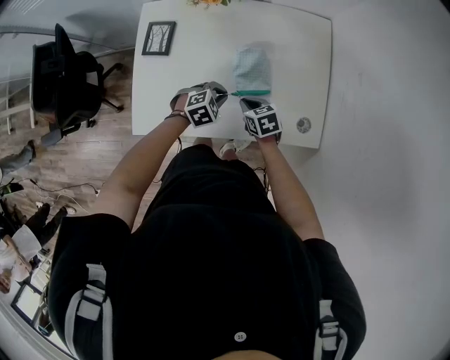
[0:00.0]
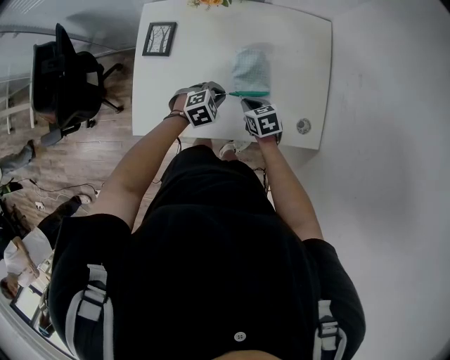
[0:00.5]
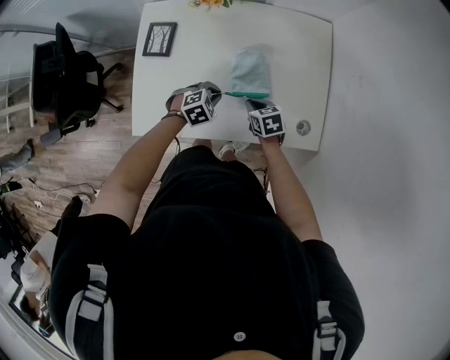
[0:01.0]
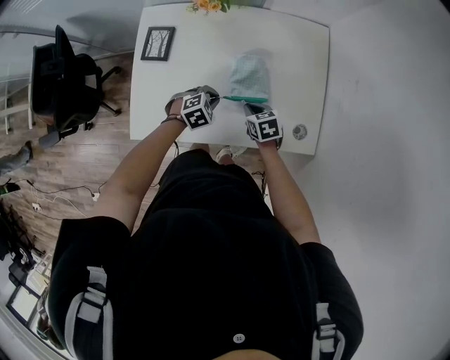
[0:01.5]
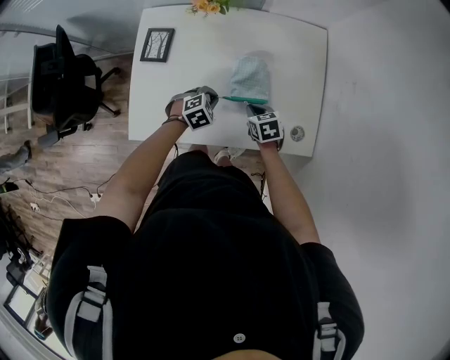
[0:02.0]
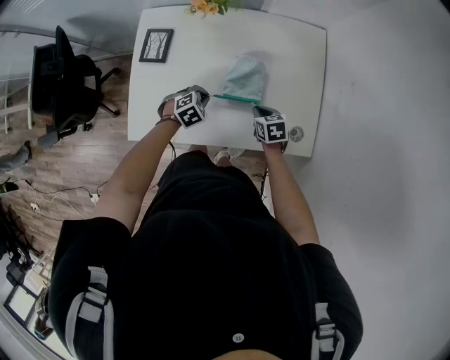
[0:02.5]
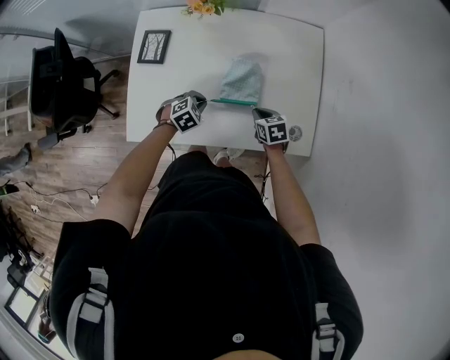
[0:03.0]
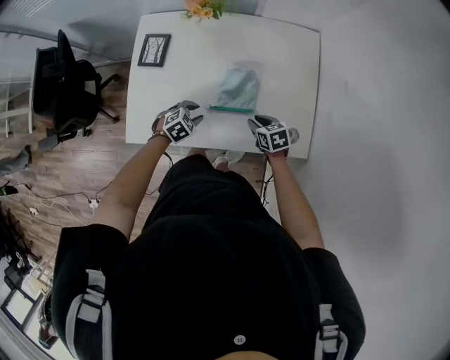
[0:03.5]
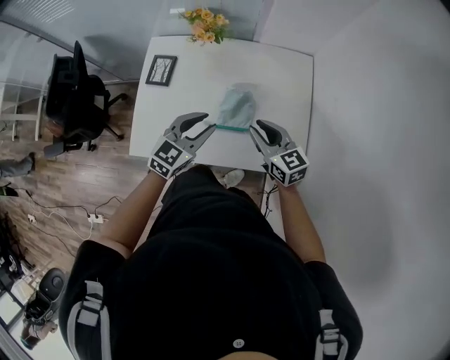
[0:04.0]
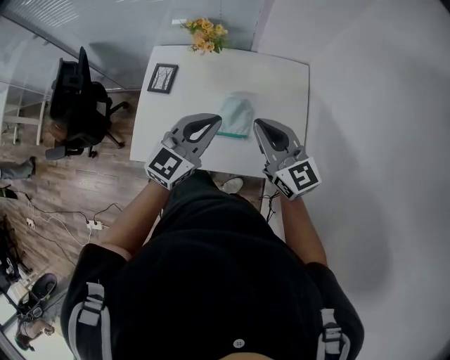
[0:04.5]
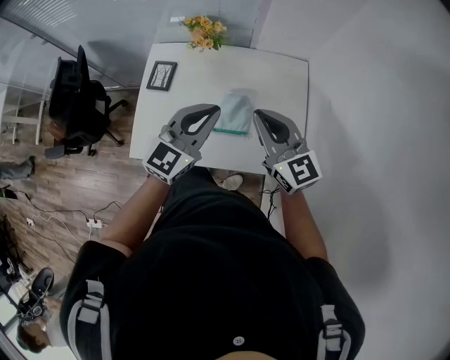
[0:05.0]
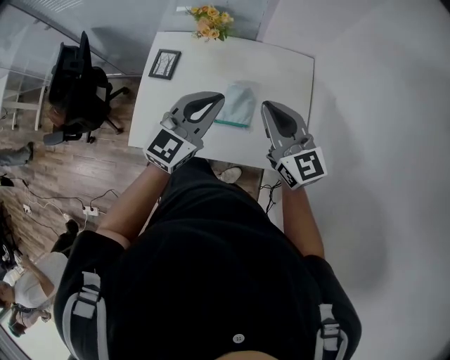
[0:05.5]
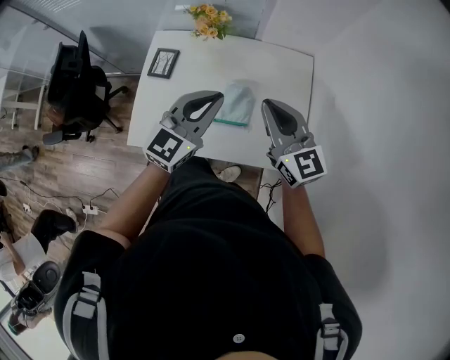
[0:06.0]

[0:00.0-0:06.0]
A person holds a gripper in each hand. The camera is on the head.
0.0 to 2.0 s: The grippers stay close to where they were, moving slightly.
2.0 to 4.0 s: Both grippers travel together upward, some 25 cm. The left gripper points its fingers about 40 degrees further upward, and opens; the right gripper points its fingers roughly 40 degrees further upward.
4.0 to 6.0 s: Both grippers move upward, some 15 cm. The left gripper closes its fingers, while the right gripper changes its angle by approximately 20 degrees.

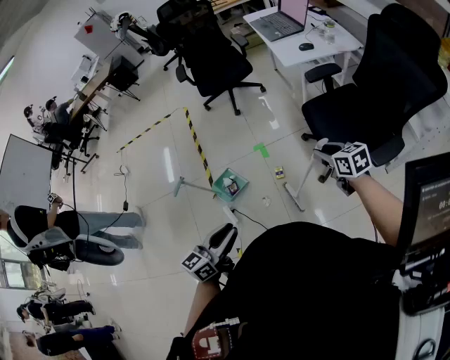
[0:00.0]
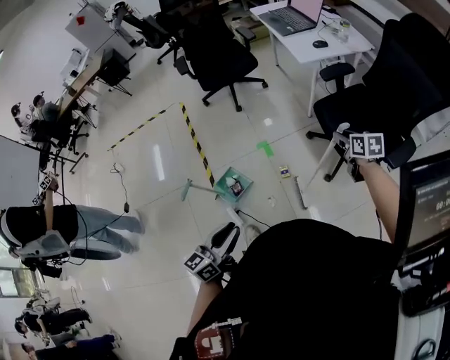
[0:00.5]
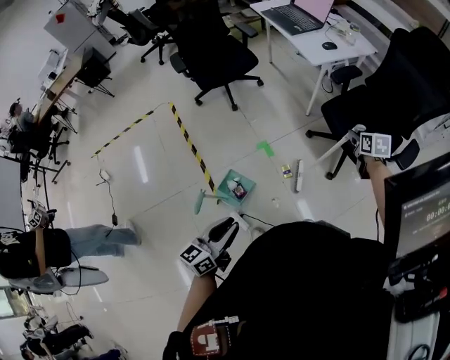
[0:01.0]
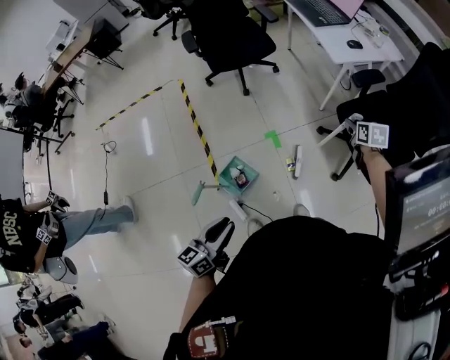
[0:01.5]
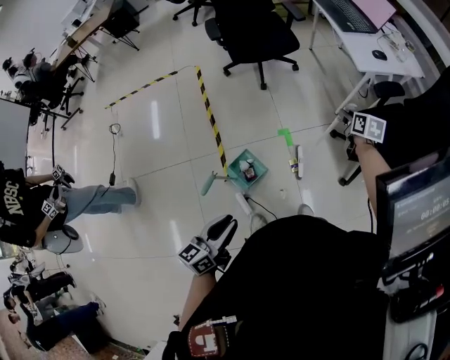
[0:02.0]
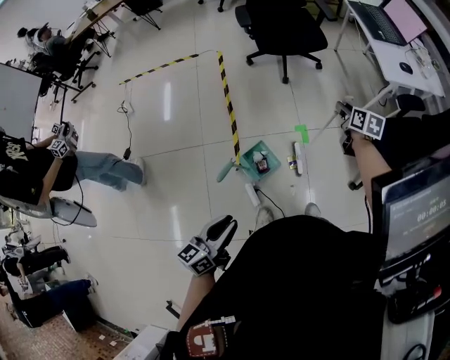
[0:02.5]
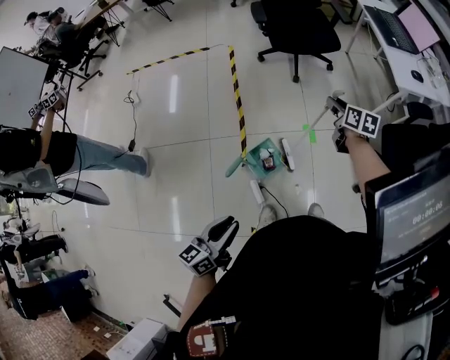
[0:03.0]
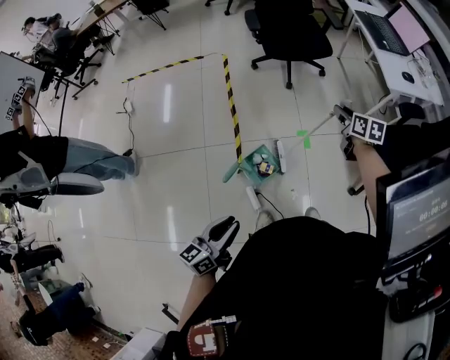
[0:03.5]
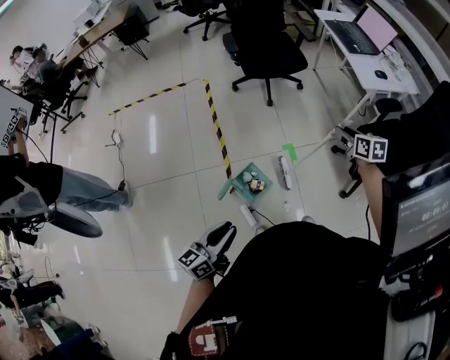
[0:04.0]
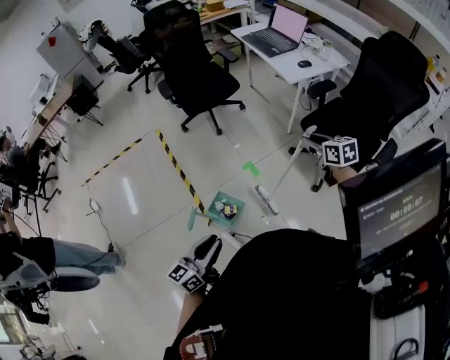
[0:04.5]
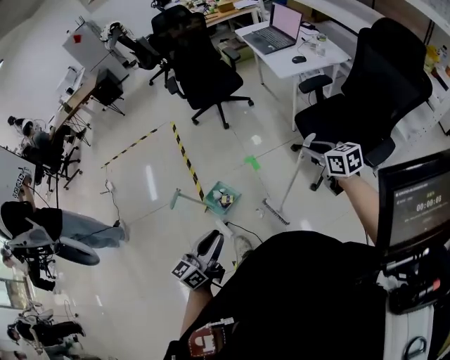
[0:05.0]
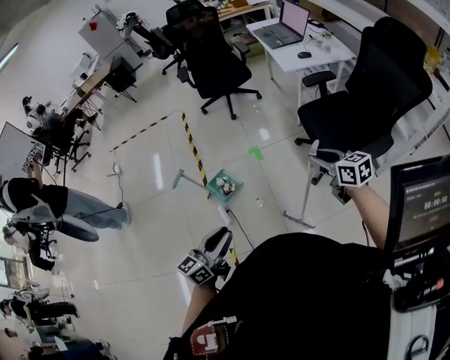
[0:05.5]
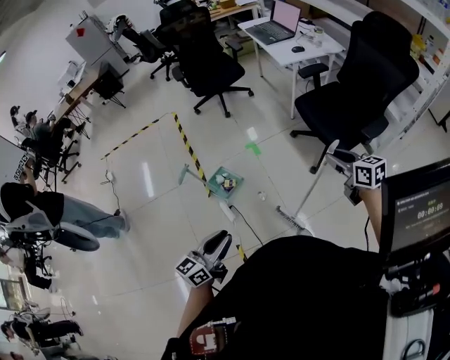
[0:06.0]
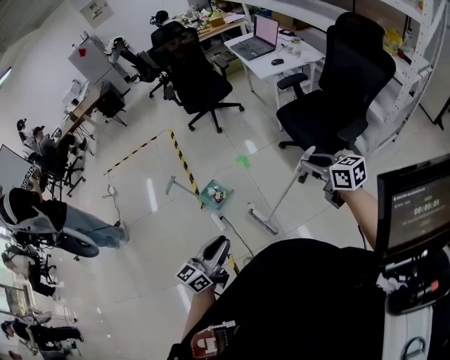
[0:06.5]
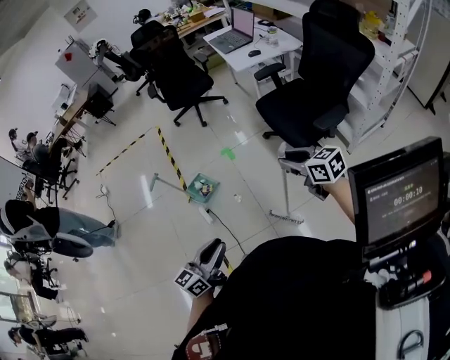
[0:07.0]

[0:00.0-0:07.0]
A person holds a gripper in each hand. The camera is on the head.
0.0 to 2.0 s: The left gripper changes place by roughly 35 cm, while the right gripper shifts by roughly 40 cm, and changes its angle by roughly 30 degrees.
2.0 to 3.5 s: The right gripper travels to the left by some 20 cm, while the left gripper travels to the left and backward by about 10 cm.
3.5 to 5.0 s: The right gripper travels to the right and backward by about 40 cm, while the left gripper travels to the right by about 25 cm.
5.0 to 7.0 s: The right gripper is displaced backward by approximately 25 cm; the left gripper heads backward and to the right, covering some 25 cm.

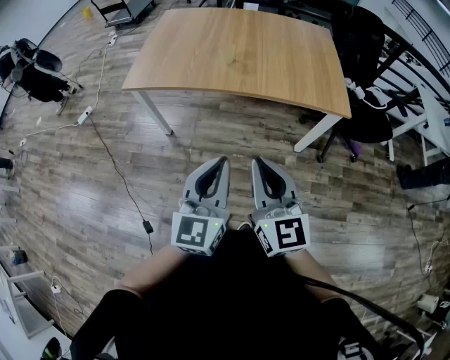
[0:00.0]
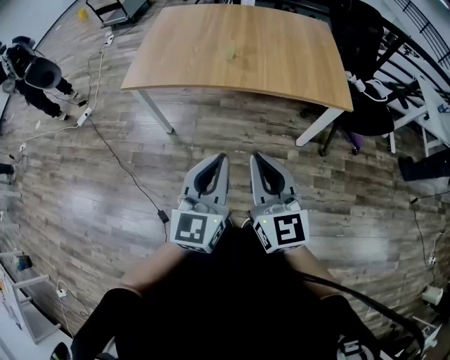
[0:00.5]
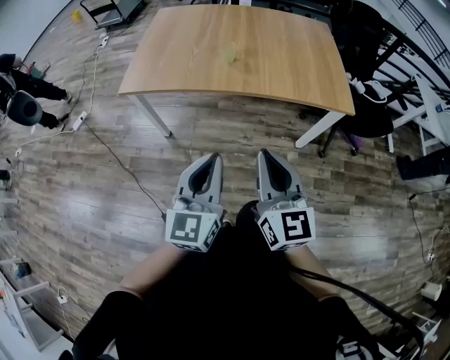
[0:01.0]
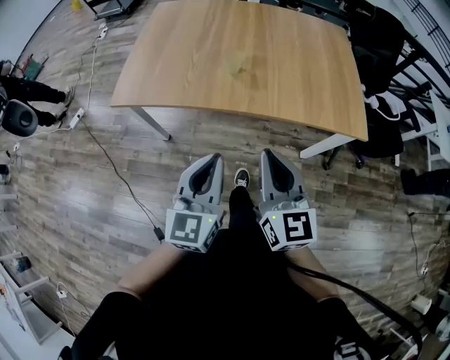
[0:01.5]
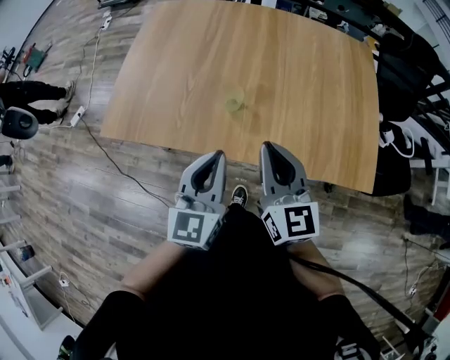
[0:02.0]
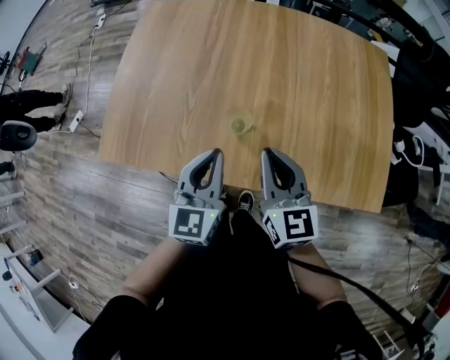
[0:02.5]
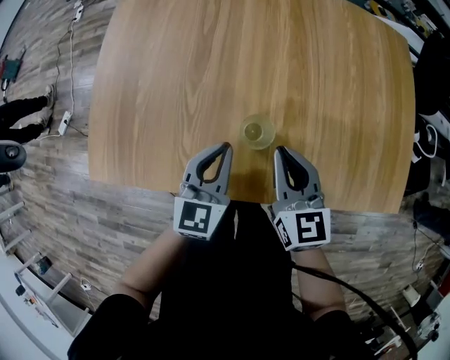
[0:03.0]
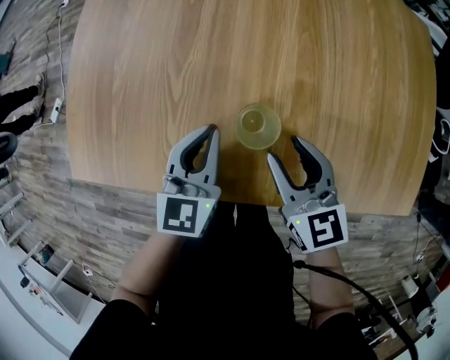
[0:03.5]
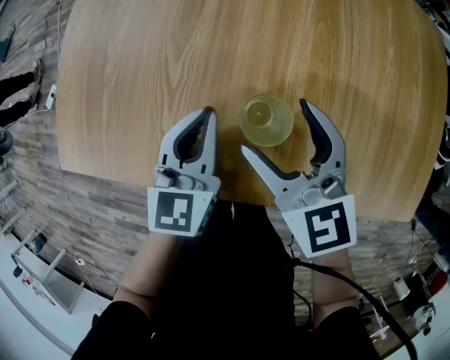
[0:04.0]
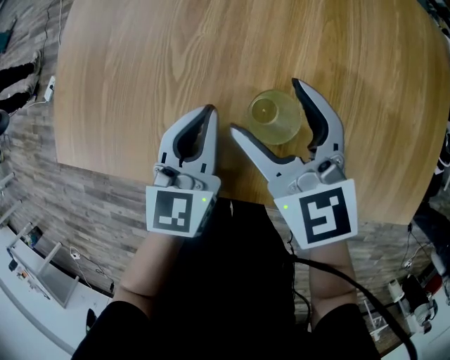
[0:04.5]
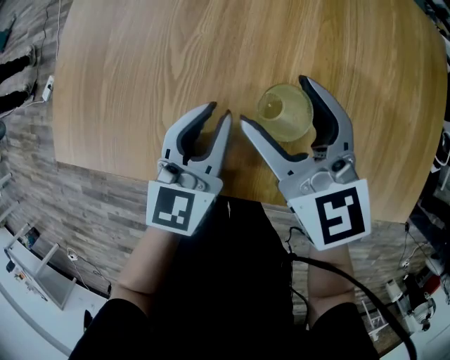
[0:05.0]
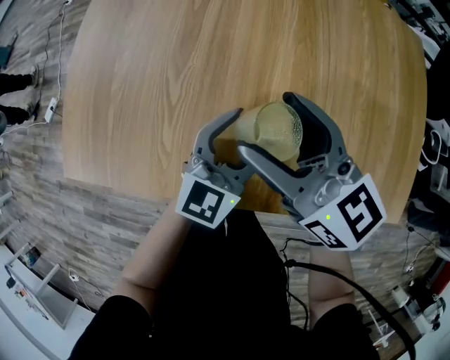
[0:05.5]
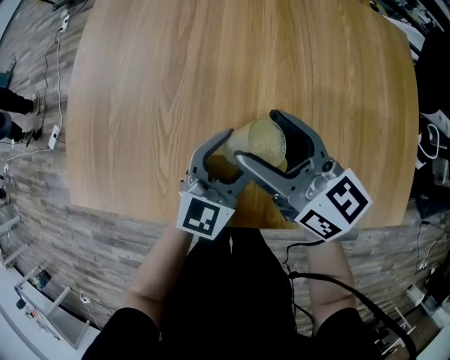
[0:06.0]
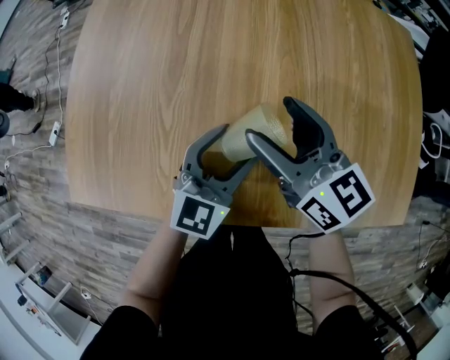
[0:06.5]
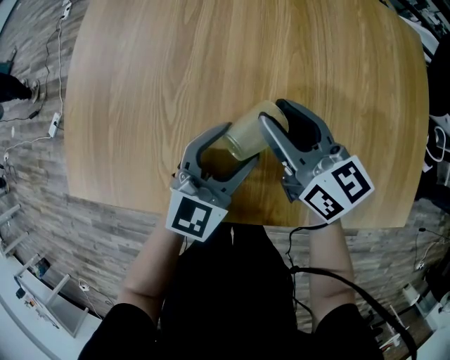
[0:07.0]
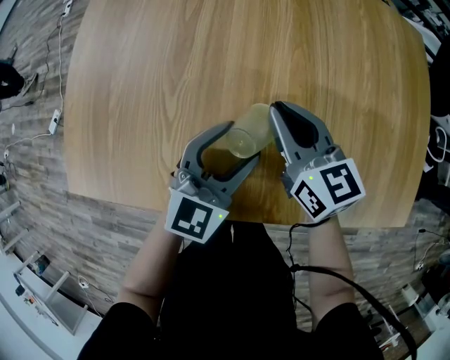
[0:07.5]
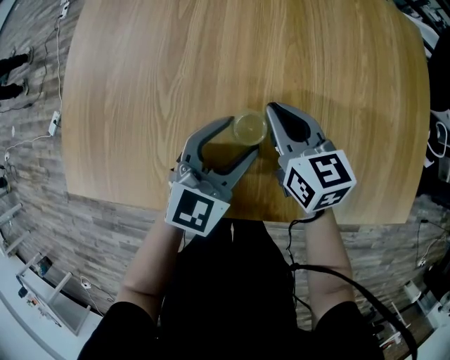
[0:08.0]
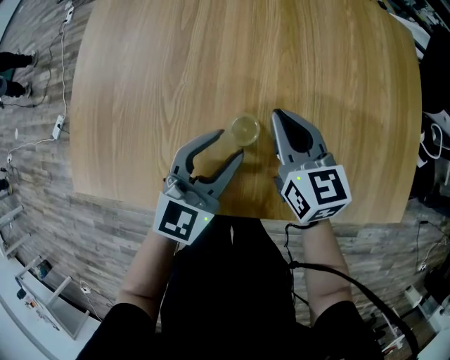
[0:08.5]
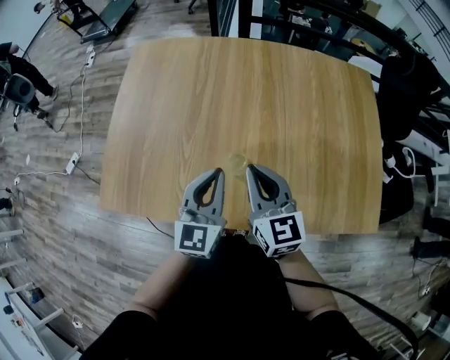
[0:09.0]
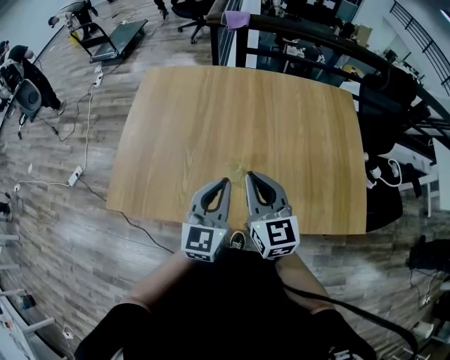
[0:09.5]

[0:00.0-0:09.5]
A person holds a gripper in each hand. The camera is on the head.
0.0 to 2.0 s: Both grippers are carried forward, roughly 50 cm.
2.0 to 4.0 s: The grippers both shift downward and forward by some 35 cm. The right gripper rotates roughly 20 degrees, and opens its fingers.
4.0 to 5.5 s: The right gripper moves upward, roughly 10 cm, and changes its angle by roughly 20 degrees. Meanwhile the left gripper heads to the right, covering approximately 10 cm, swivels approximately 30 degrees, and opens up.
5.5 to 7.5 s: The right gripper goes roughly 10 cm downward, and closes its fingers.
7.5 to 9.5 s: The grippers both shift upward and backward by roughly 25 cm. The left gripper turns by roughly 20 degrees, and closes up.

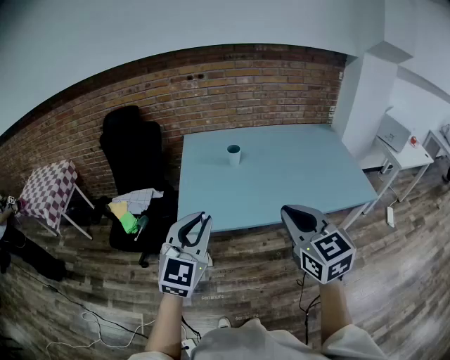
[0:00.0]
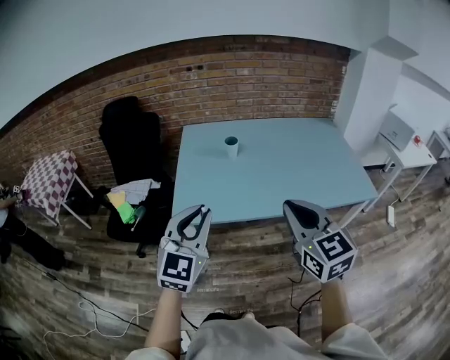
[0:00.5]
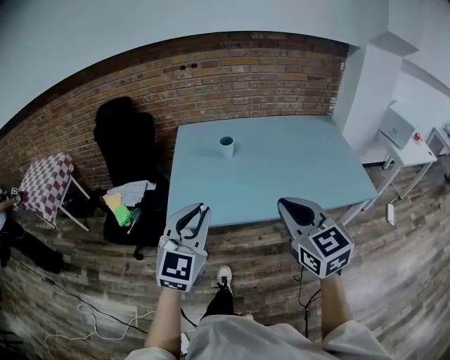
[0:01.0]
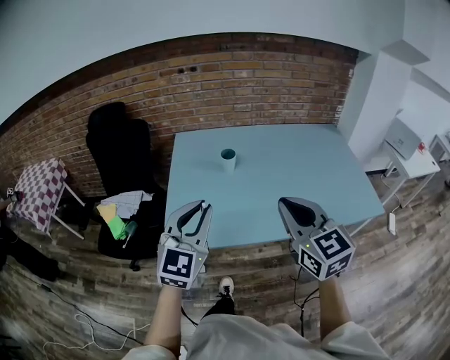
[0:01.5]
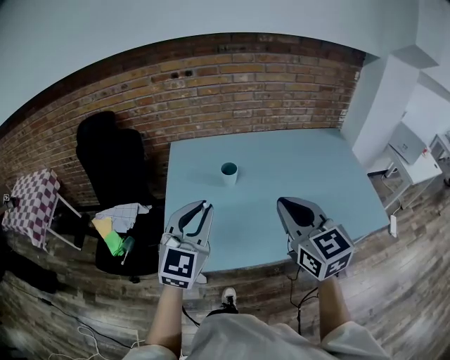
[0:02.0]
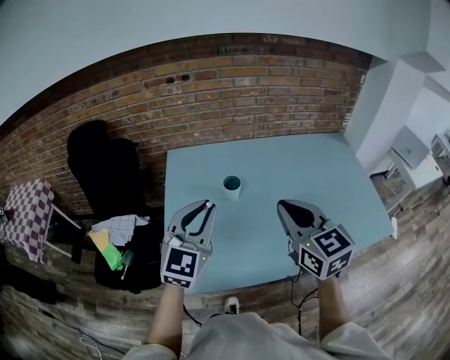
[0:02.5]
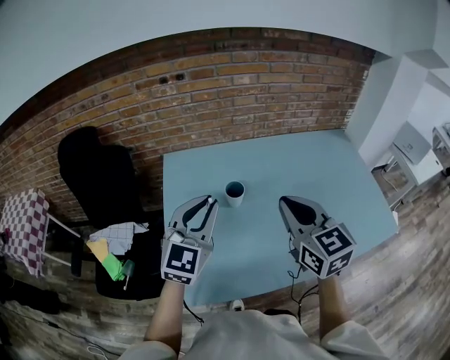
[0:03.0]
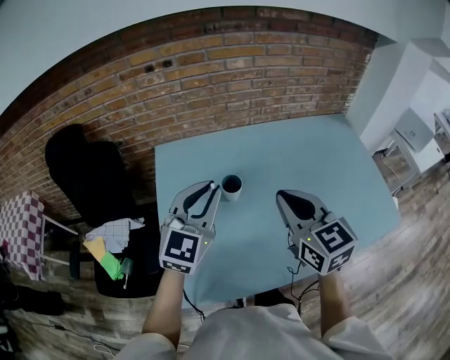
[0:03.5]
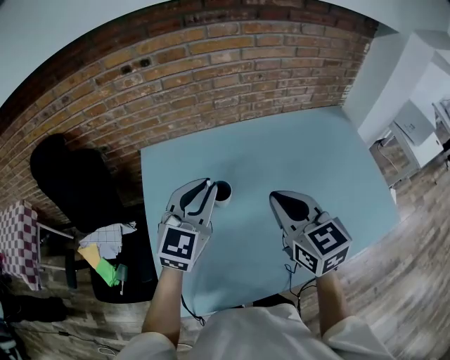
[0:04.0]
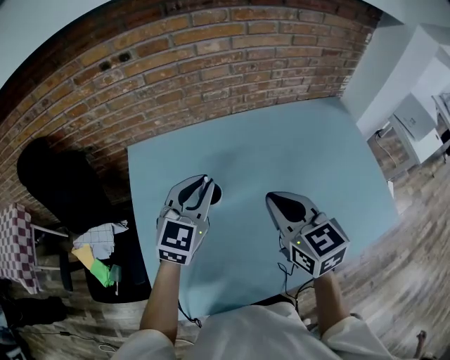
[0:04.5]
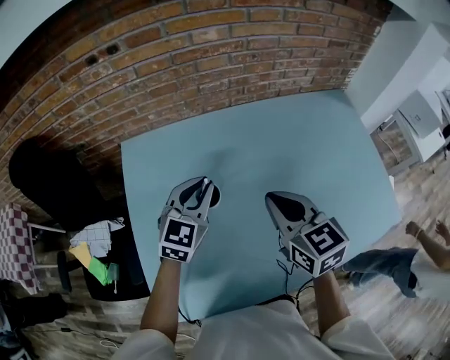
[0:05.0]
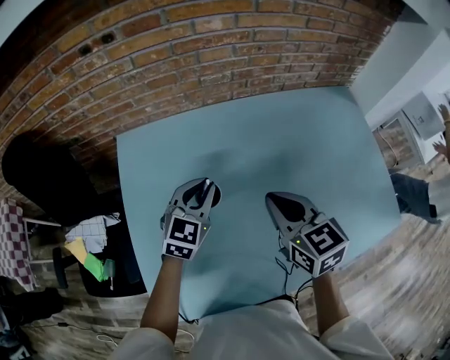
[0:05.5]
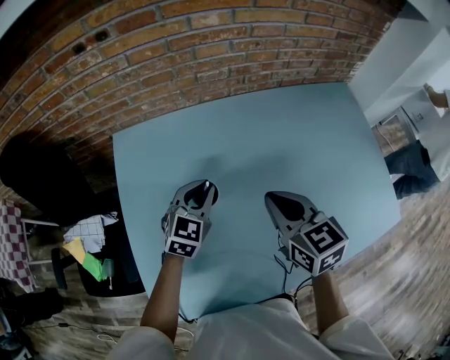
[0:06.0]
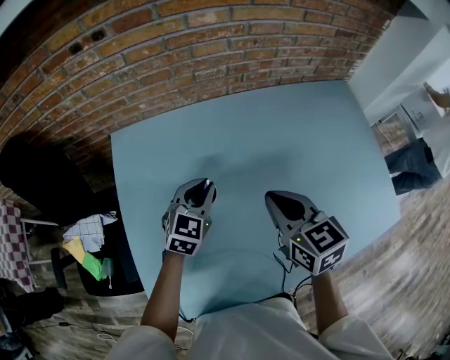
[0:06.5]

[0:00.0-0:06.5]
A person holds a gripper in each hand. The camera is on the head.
0.0 to 2.0 s: The grippers both shift forward by some 25 cm.
2.0 to 4.5 s: The two grippers go approximately 30 cm forward.
4.5 to 6.5 s: The left gripper heads downward, covering approximately 15 cm. Meanwhile the right gripper moves downward, about 5 cm.
